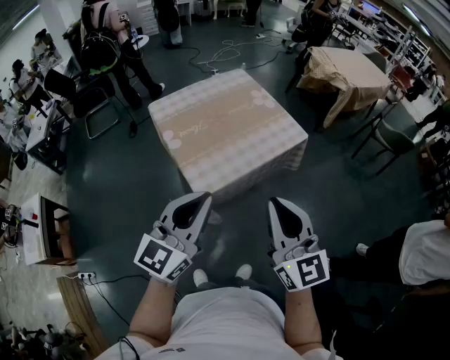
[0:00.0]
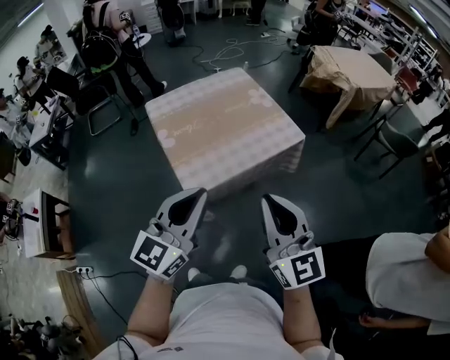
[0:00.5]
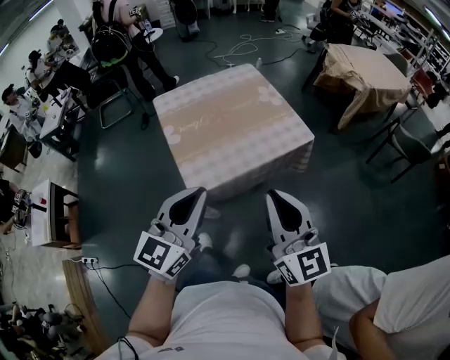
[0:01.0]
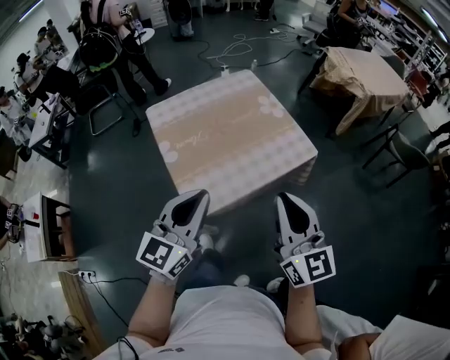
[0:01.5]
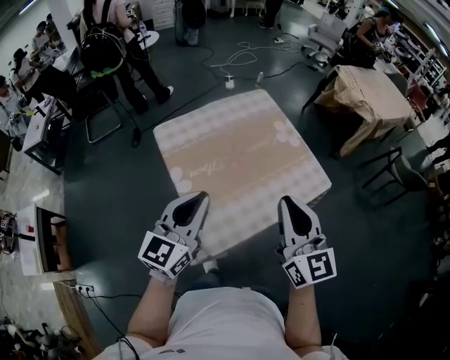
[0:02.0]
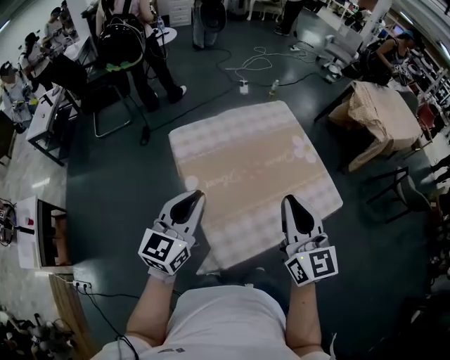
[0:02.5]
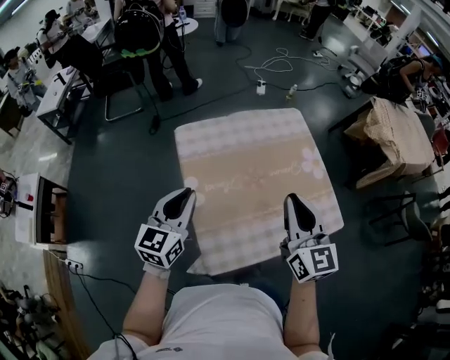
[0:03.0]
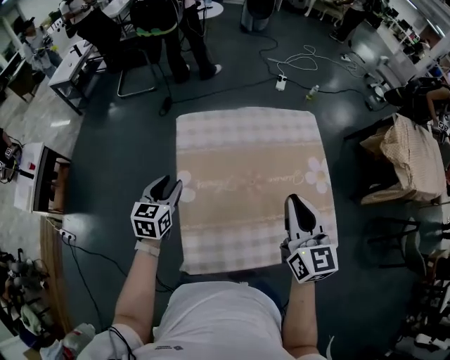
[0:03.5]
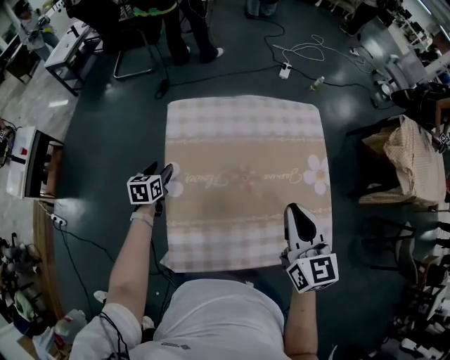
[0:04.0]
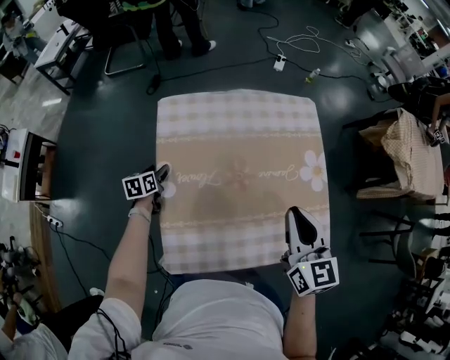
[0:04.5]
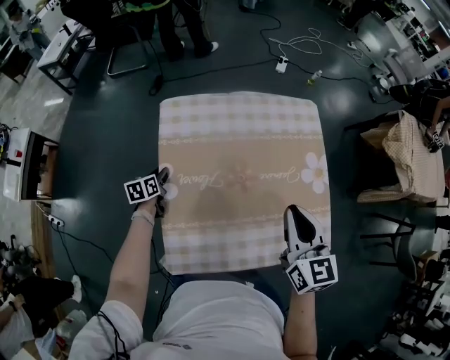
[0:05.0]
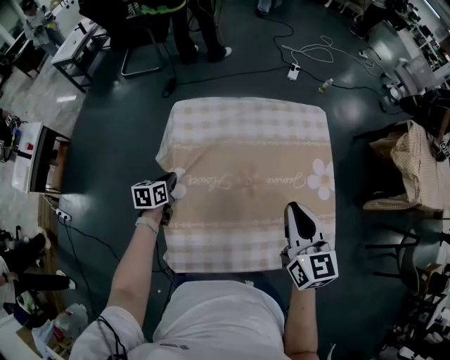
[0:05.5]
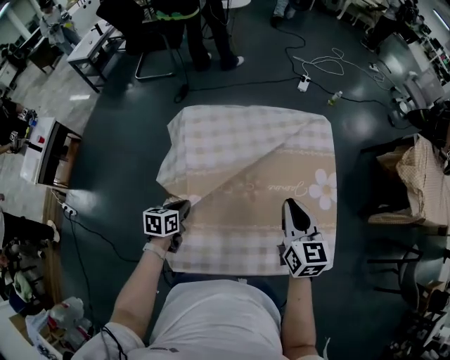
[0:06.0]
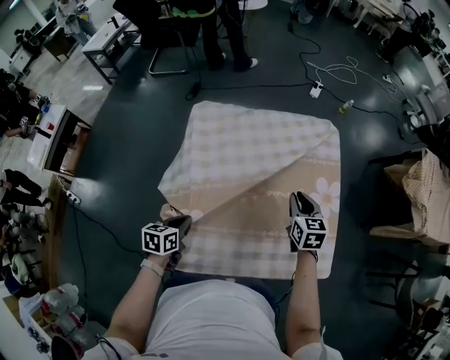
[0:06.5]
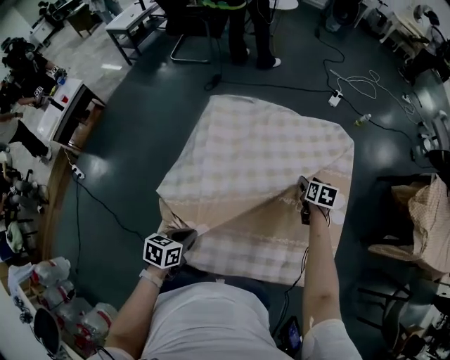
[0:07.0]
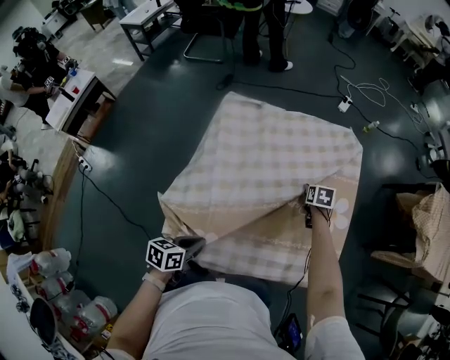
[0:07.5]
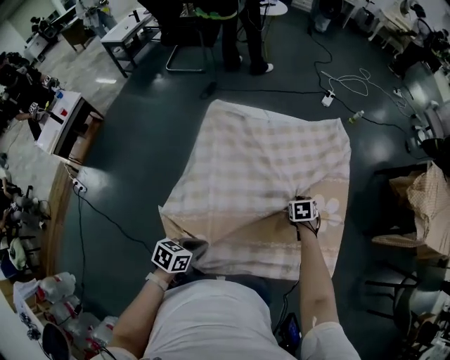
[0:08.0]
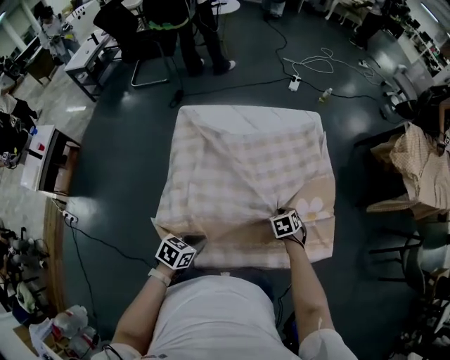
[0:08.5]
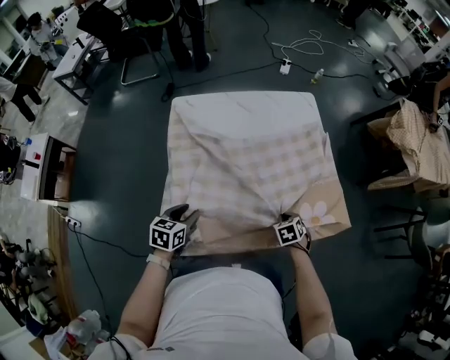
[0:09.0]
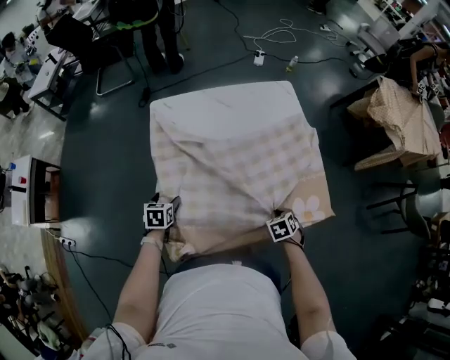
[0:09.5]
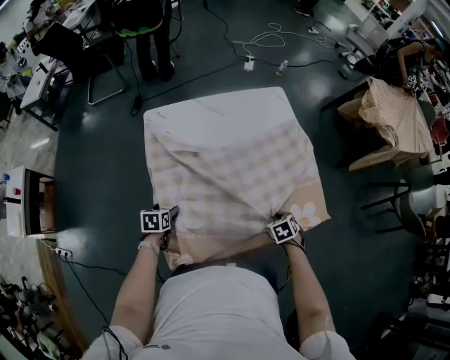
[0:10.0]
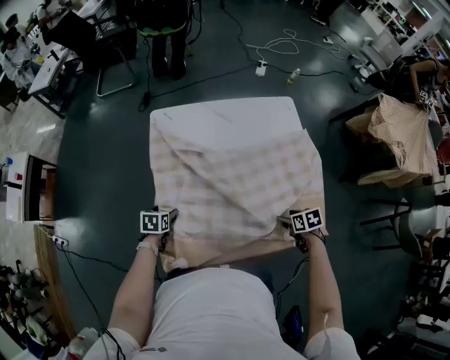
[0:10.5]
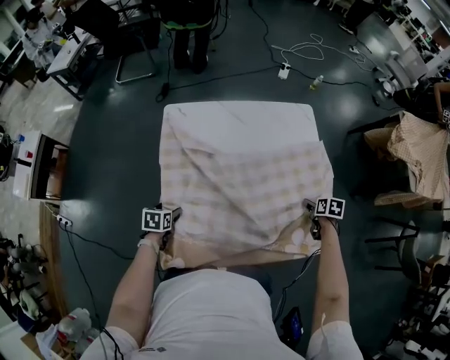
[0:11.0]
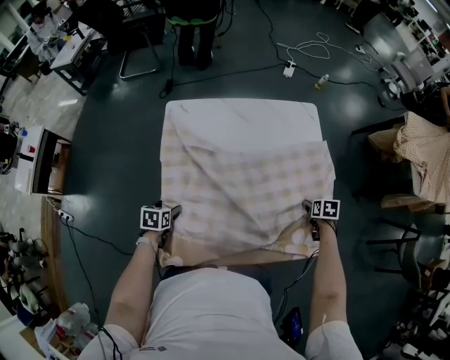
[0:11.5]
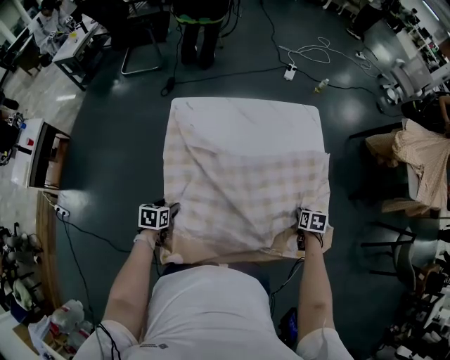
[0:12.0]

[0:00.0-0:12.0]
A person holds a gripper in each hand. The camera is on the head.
0:00.0 to 0:02.0: The grippers both shift forward by some 25 cm.
0:02.0 to 0:04.0: The right gripper changes place by about 25 cm, and rotates roughly 30 degrees, while the left gripper goes approximately 35 cm downward, points its fingers about 40 degrees further downward, and opens its fingers.
0:04.0 to 0:06.0: The left gripper moves backward and to the right, about 15 cm, and closes up. Meanwhile the right gripper goes some 5 cm downward.
0:06.0 to 0:08.0: The left gripper travels backward and to the right by approximately 20 cm, while the right gripper moves downward, approximately 25 cm, tips its fingers downward by approximately 40 degrees, and opens, then closes once more.
0:08.0 to 0:10.0: The left gripper moves roughly 20 cm, changes its angle by some 20 degrees, and opens up, while the right gripper shifts by approximately 25 cm.
0:10.0 to 0:12.0: The right gripper shifts by about 15 cm, rotates some 20 degrees, and opens, then closes again.

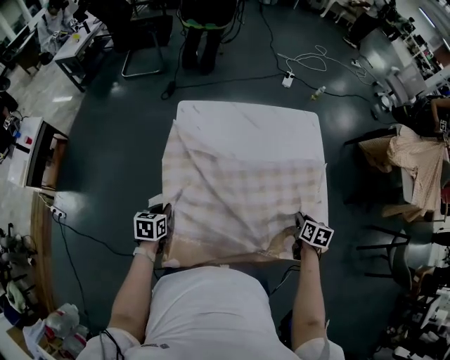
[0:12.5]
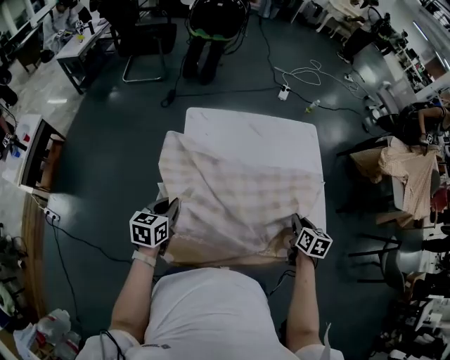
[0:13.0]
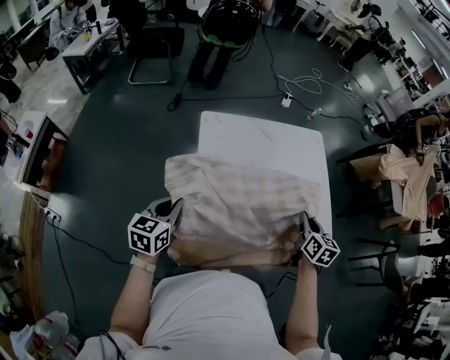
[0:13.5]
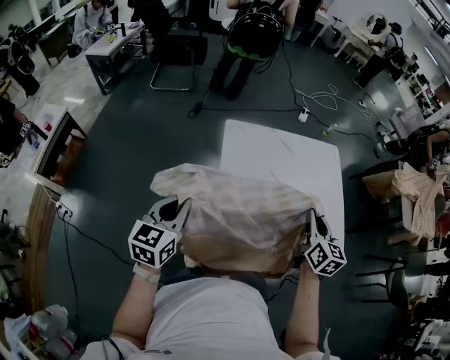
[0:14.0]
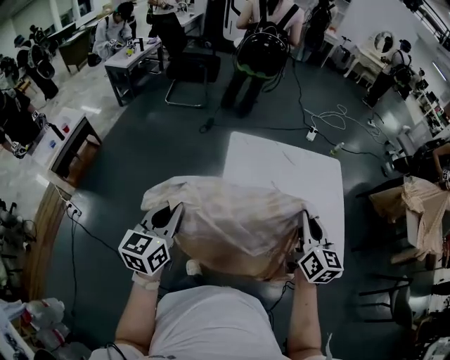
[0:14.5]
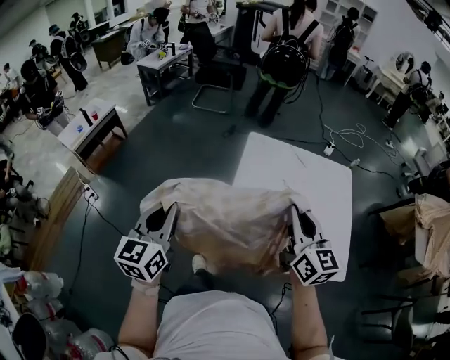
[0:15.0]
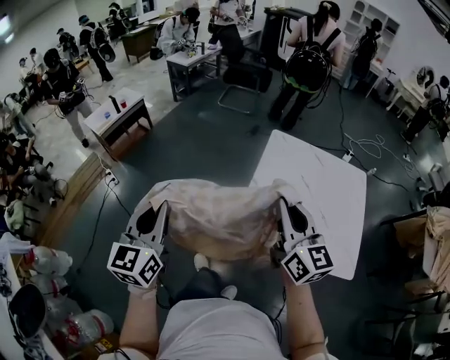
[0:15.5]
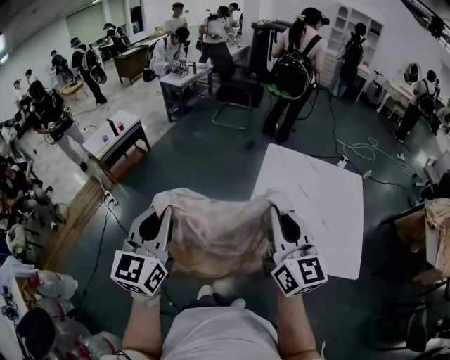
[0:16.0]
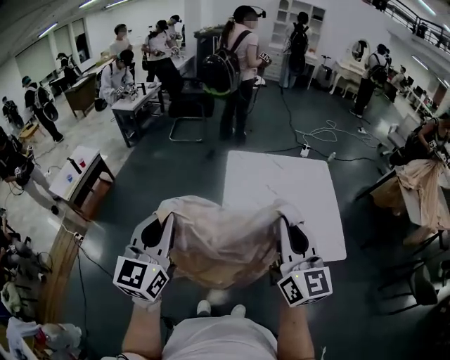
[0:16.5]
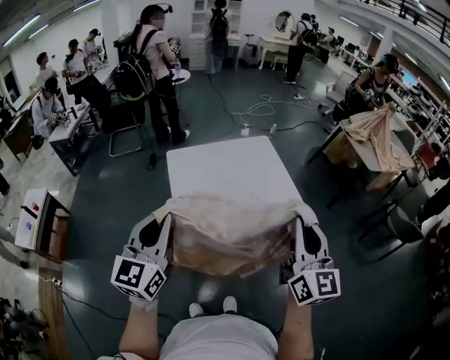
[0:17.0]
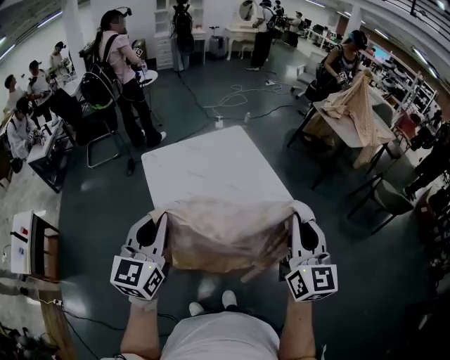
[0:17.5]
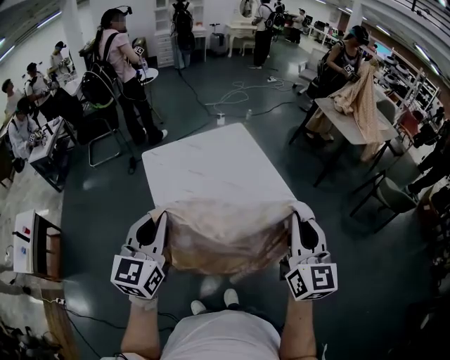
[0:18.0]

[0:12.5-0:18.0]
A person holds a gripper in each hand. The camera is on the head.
0:12.5 to 0:14.5: The right gripper is displaced upward and to the left by about 40 cm, and angles its fingers upward, by roughly 40 degrees, while the left gripper moves upward, approximately 30 cm, and tilts its fingers roughly 40 degrees upward.
0:14.5 to 0:16.0: The left gripper ends up some 30 cm from where it was, and turns by about 30 degrees. Meanwhile the right gripper moves roughly 30 cm, and turns by roughly 30 degrees.
0:16.0 to 0:18.0: The right gripper shifts by some 30 cm, and turns by approximately 60 degrees. Meanwhile the left gripper changes place by about 25 cm, and rotates about 40 degrees.

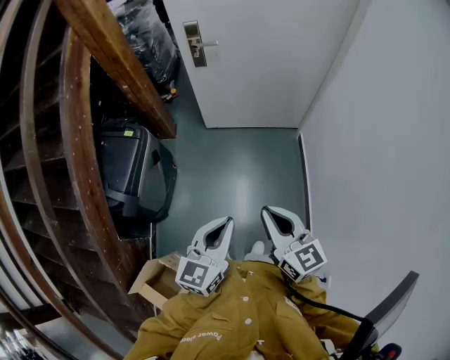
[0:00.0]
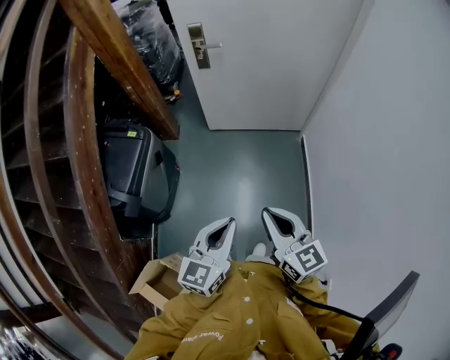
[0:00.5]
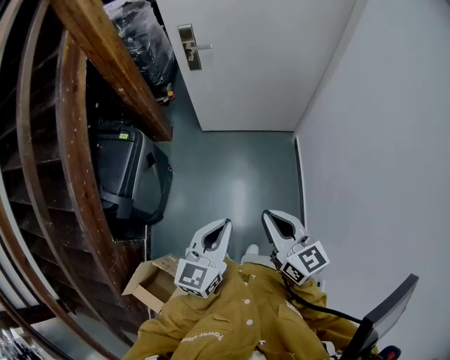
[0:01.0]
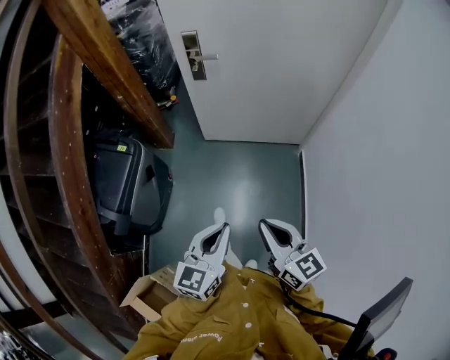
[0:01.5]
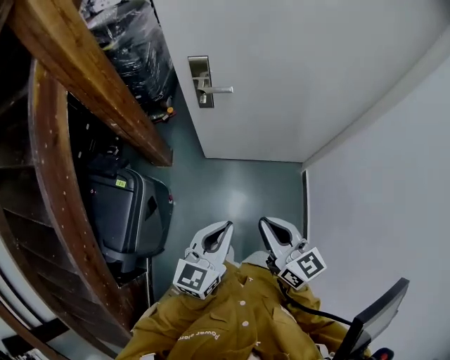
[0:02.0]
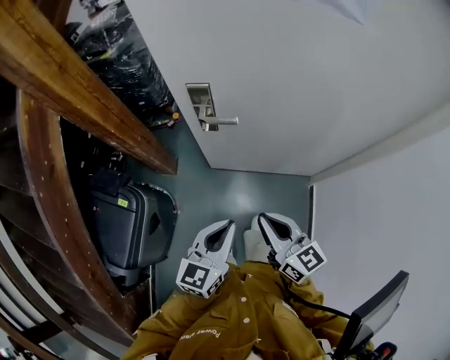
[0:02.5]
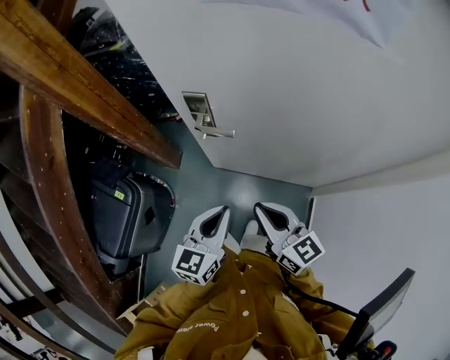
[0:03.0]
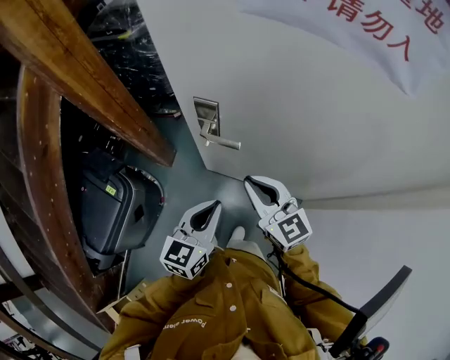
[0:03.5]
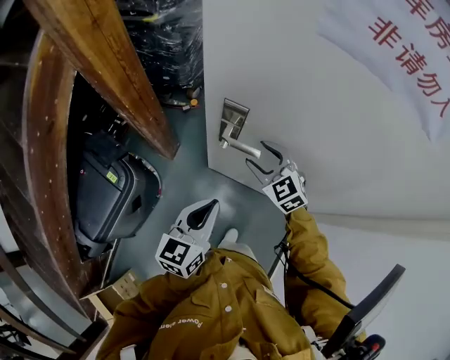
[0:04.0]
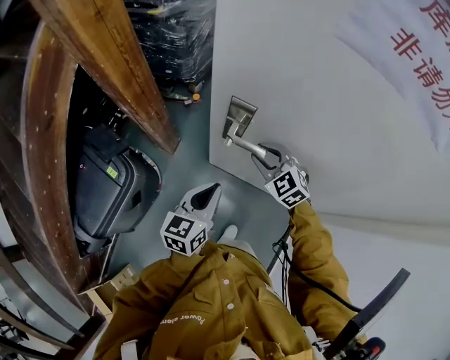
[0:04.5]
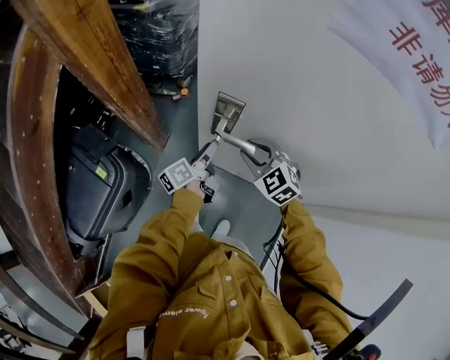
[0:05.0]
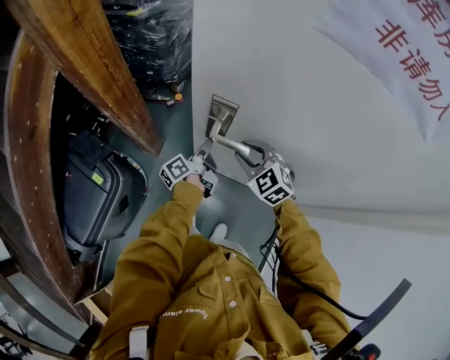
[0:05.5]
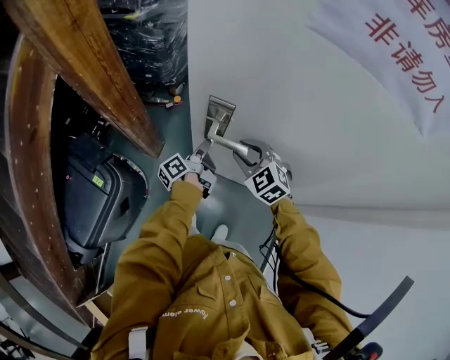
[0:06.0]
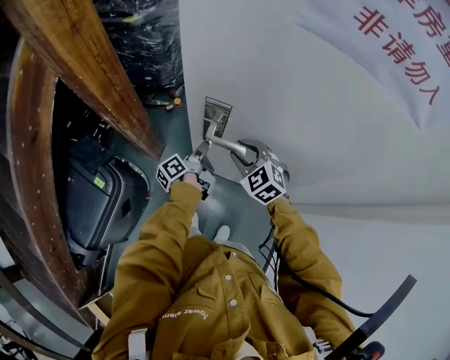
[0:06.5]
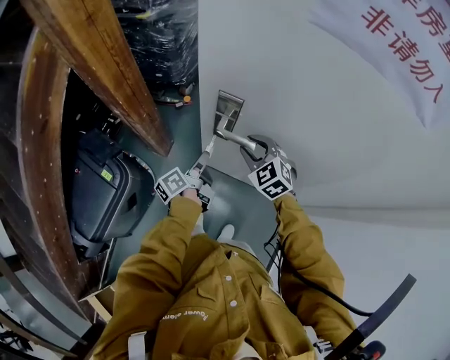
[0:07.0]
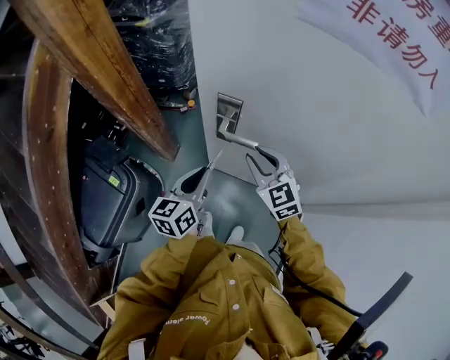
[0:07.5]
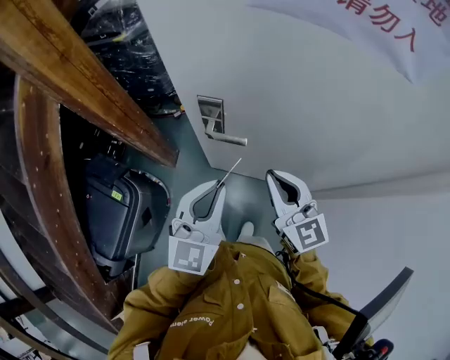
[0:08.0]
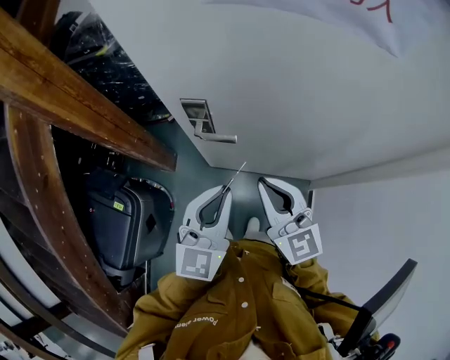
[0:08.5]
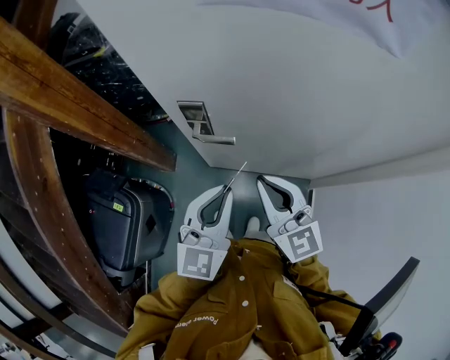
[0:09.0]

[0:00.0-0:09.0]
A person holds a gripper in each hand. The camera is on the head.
0:00.0 to 0:02.0: The two grippers go about 35 cm forward.
0:02.0 to 0:04.5: The two grippers go approximately 40 cm forward. The left gripper changes its angle by about 30 degrees; the right gripper rotates around the line of its fingers by some 50 degrees, counterclockwise from behind, and opens up.
0:04.5 to 0:07.0: The left gripper travels forward and downward by about 15 cm, rolls counterclockwise, seen from behind, by about 60 degrees, and opens, then closes once more.
0:07.0 to 0:09.0: The right gripper heads upward and backward, covering approximately 20 cm, angles its fingers upward, by approximately 40 degrees, and closes up. The left gripper goes about 25 cm upward, backward and to the right, and twists about 90 degrees clockwise, seen from behind.
